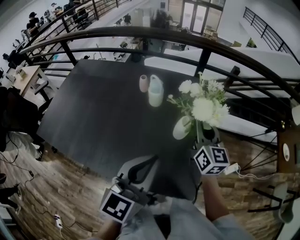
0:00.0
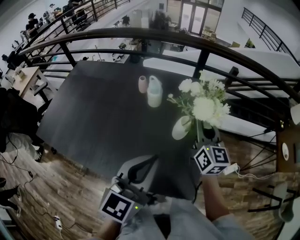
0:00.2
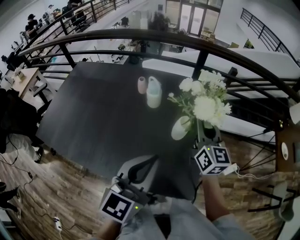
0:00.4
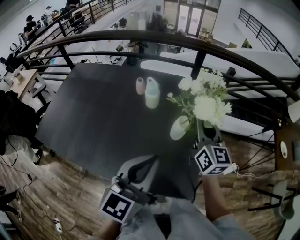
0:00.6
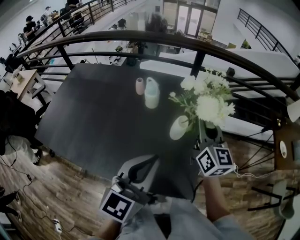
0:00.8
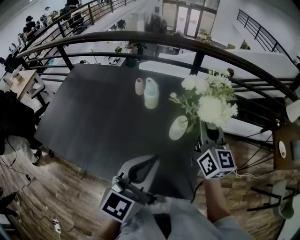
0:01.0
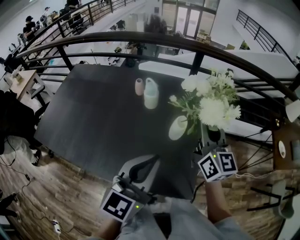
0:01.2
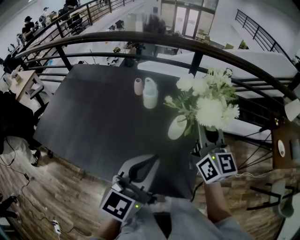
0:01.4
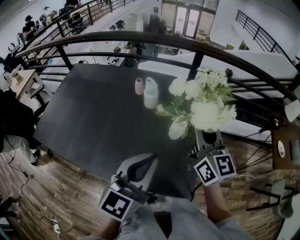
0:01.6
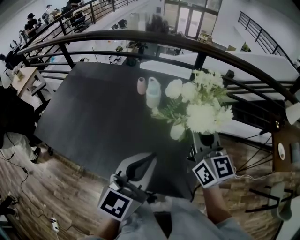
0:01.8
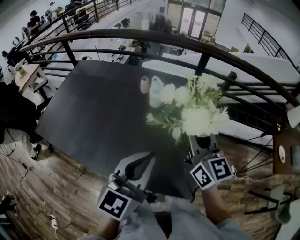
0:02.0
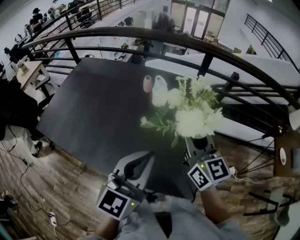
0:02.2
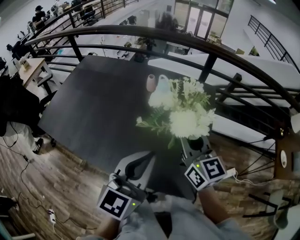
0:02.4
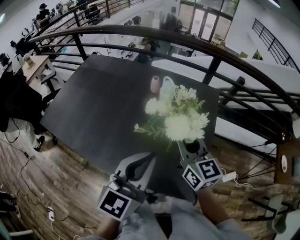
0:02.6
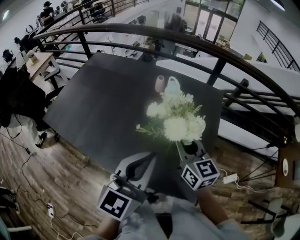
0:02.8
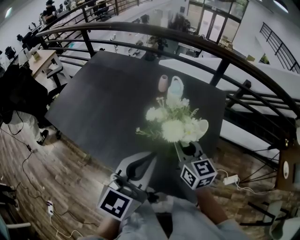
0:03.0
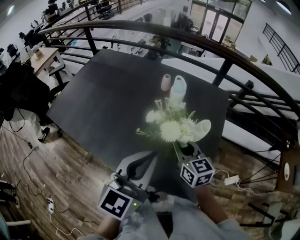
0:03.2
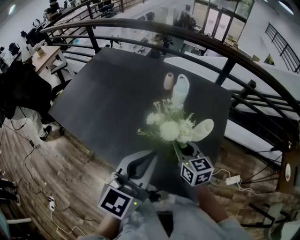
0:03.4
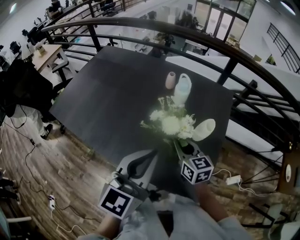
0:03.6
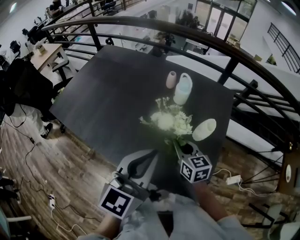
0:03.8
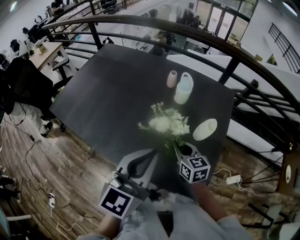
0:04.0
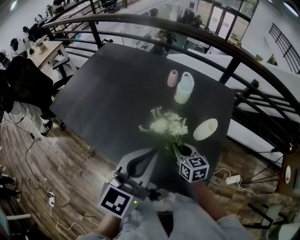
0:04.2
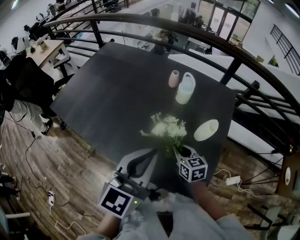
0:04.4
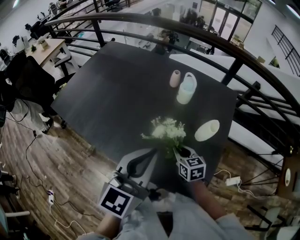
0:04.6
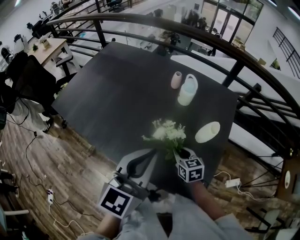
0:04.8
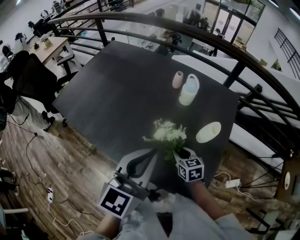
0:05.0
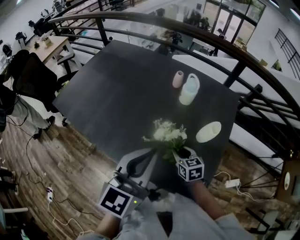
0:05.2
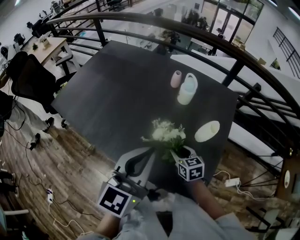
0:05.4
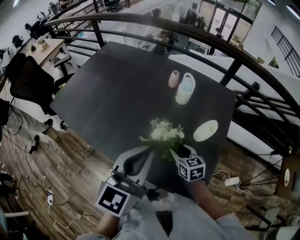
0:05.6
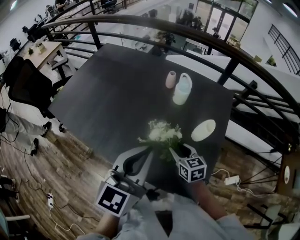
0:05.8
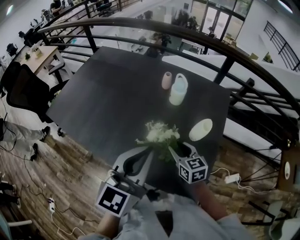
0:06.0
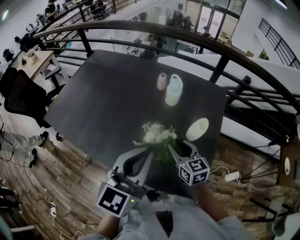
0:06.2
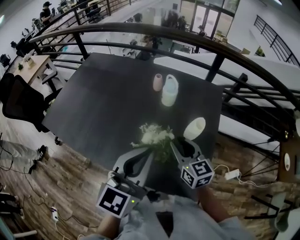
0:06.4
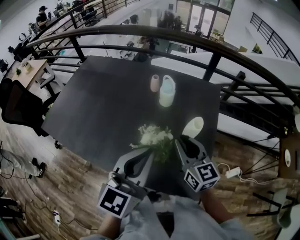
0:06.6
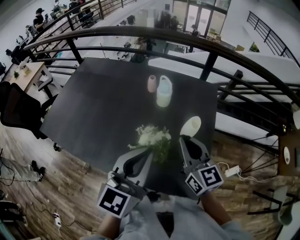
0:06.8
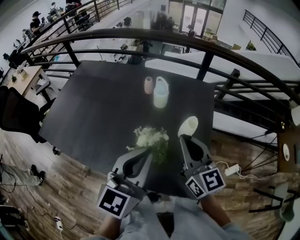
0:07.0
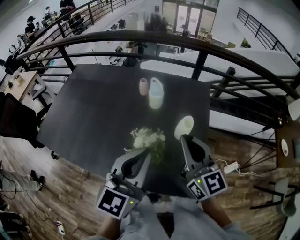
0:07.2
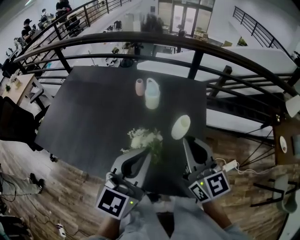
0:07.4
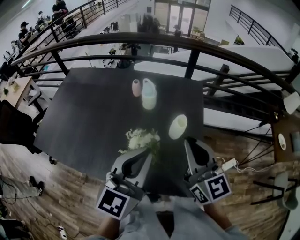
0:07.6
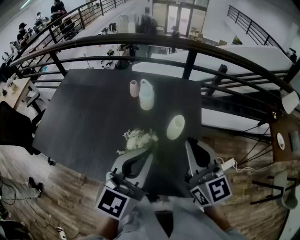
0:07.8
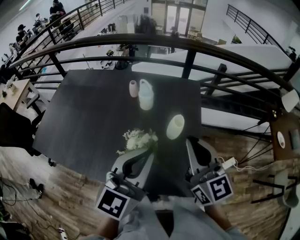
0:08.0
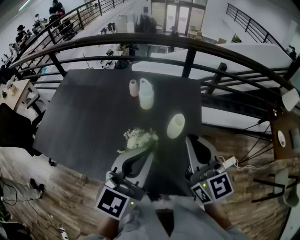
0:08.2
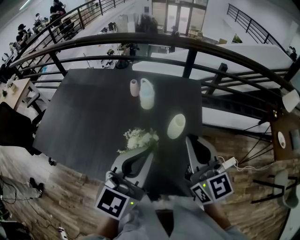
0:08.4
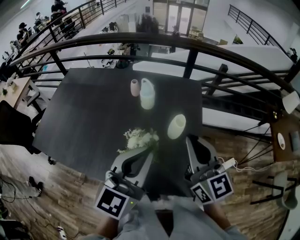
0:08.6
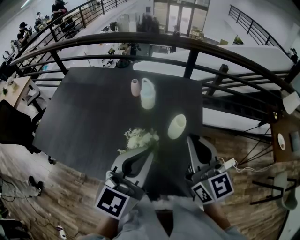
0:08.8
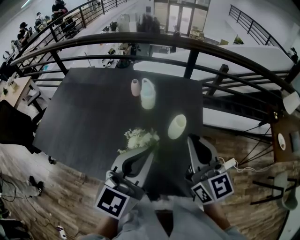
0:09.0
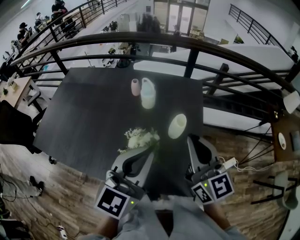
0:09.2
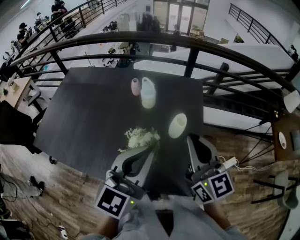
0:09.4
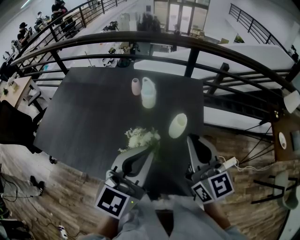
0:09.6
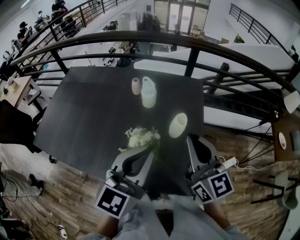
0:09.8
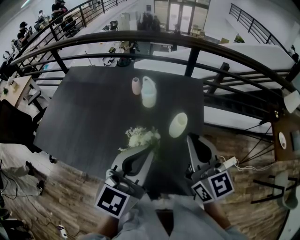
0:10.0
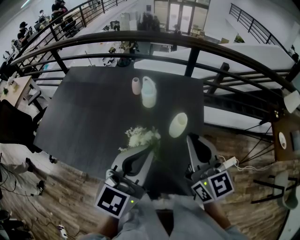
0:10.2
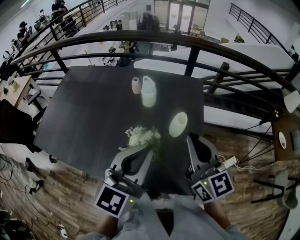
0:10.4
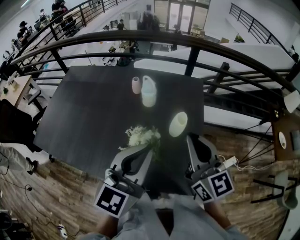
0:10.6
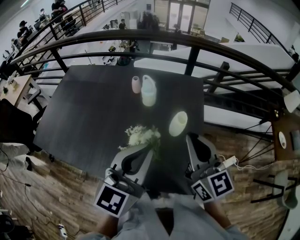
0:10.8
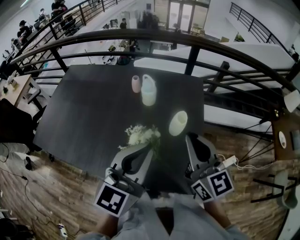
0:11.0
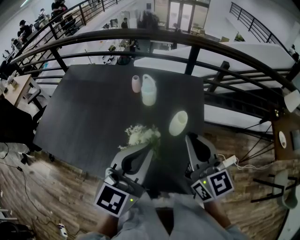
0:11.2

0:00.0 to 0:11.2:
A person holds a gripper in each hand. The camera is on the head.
0:00.0 to 0:01.6: The right gripper shifts approximately 10 cm upward and backward.
0:01.6 to 0:03.2: The right gripper shifts some 20 cm downward and to the left, and swivels some 30 degrees. Meanwhile the left gripper goes roughly 5 cm to the left.
0:03.2 to 0:04.8: The right gripper shifts some 15 cm downward.
0:04.8 to 0:06.4: The right gripper moves upward, some 15 cm, and swivels approximately 20 degrees.
0:06.4 to 0:08.0: The right gripper heads upward and to the right, covering approximately 20 cm, changes its angle by about 20 degrees, and closes its fingers. Meanwhile the left gripper travels to the right by some 5 cm.
0:08.0 to 0:09.6: Both grippers stay put.
0:09.6 to 0:11.2: Both grippers stay put.

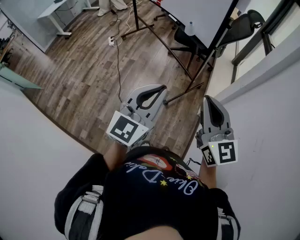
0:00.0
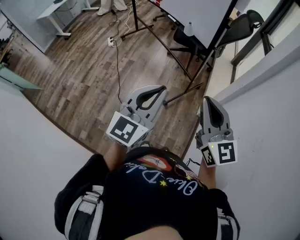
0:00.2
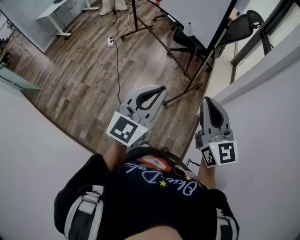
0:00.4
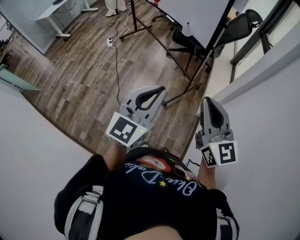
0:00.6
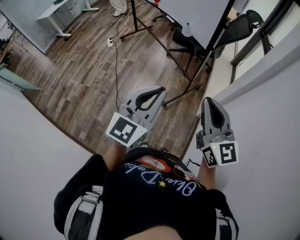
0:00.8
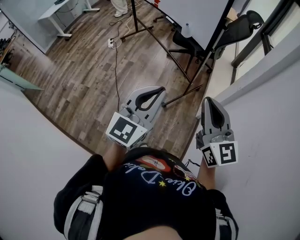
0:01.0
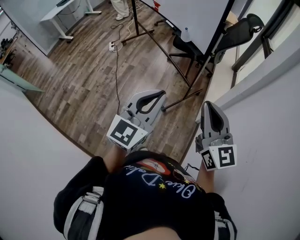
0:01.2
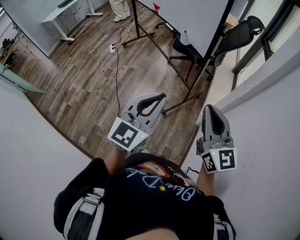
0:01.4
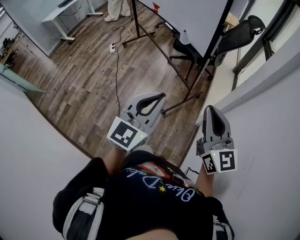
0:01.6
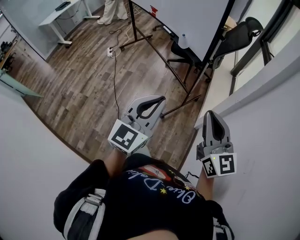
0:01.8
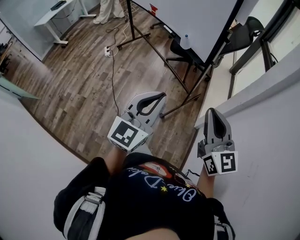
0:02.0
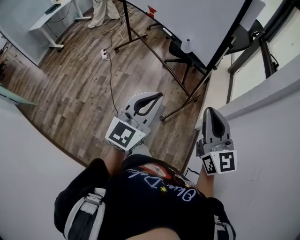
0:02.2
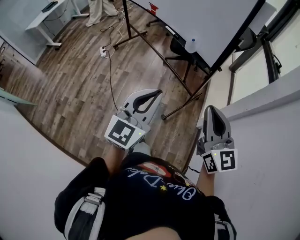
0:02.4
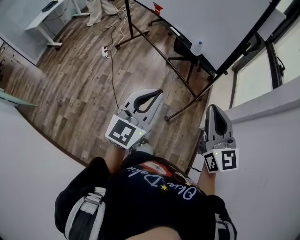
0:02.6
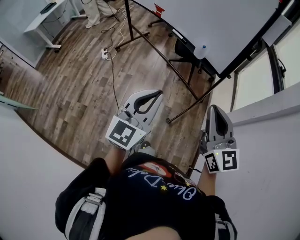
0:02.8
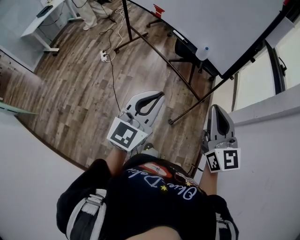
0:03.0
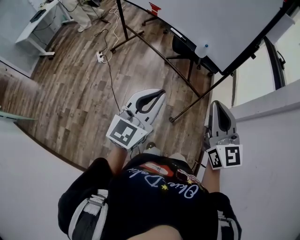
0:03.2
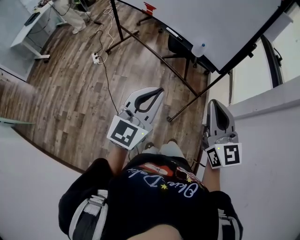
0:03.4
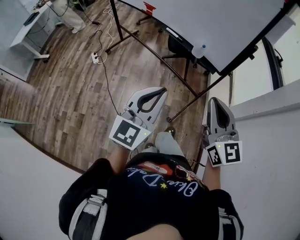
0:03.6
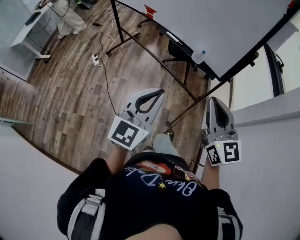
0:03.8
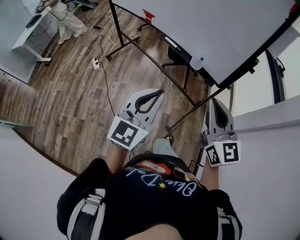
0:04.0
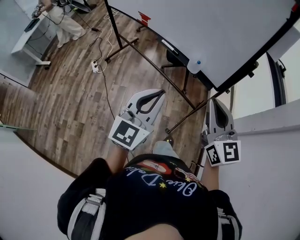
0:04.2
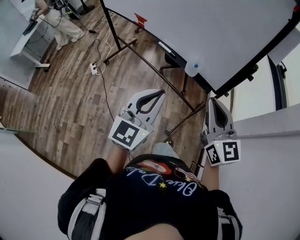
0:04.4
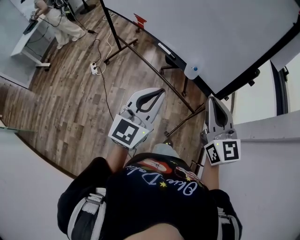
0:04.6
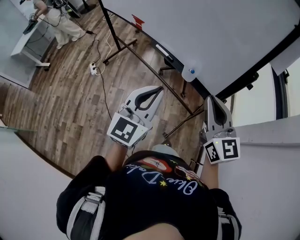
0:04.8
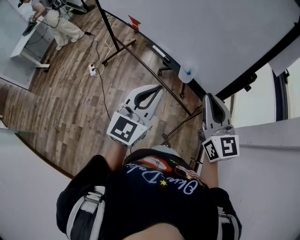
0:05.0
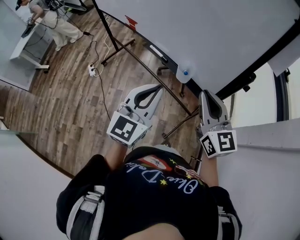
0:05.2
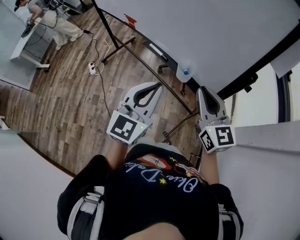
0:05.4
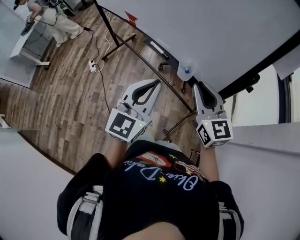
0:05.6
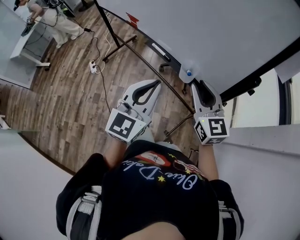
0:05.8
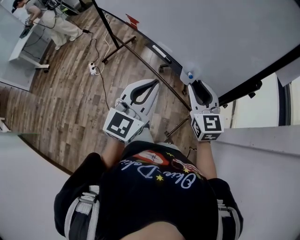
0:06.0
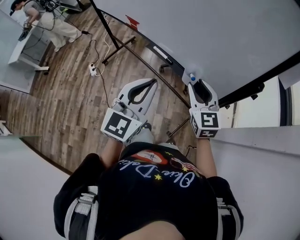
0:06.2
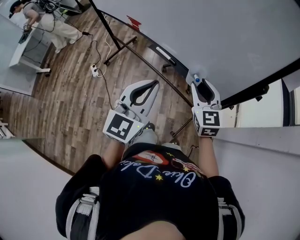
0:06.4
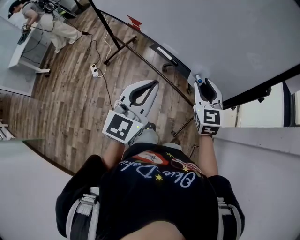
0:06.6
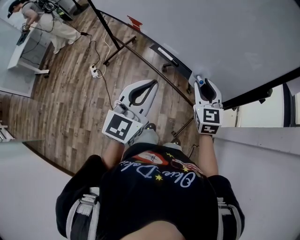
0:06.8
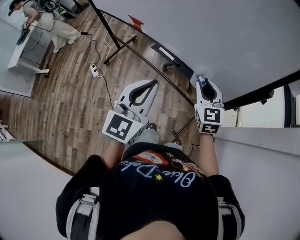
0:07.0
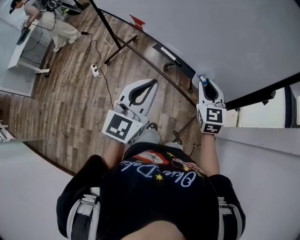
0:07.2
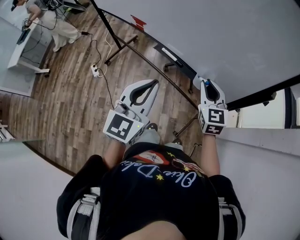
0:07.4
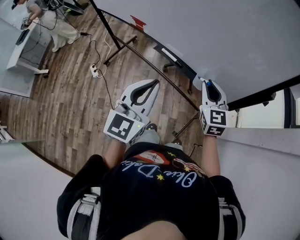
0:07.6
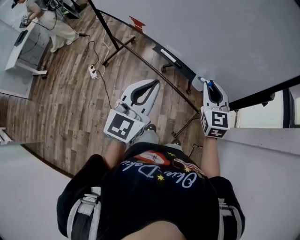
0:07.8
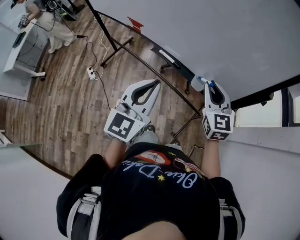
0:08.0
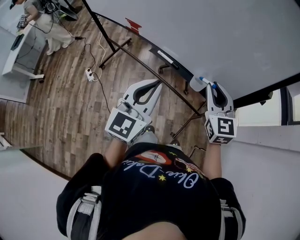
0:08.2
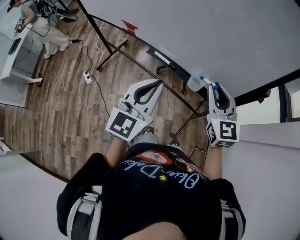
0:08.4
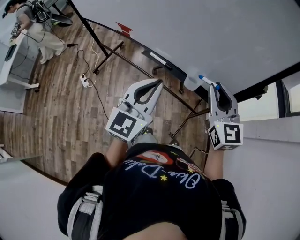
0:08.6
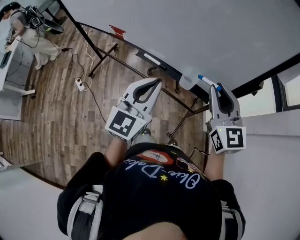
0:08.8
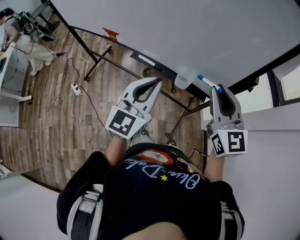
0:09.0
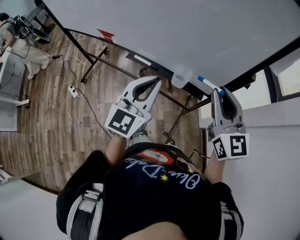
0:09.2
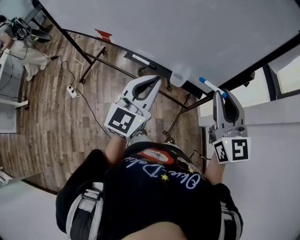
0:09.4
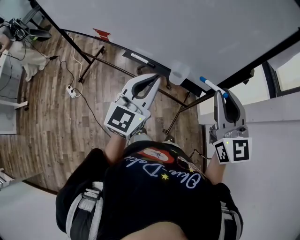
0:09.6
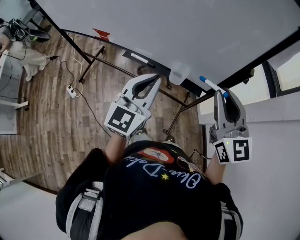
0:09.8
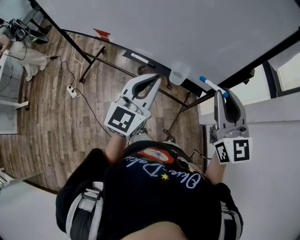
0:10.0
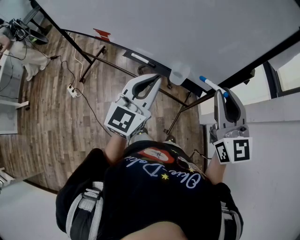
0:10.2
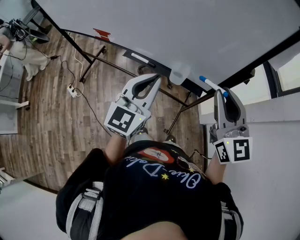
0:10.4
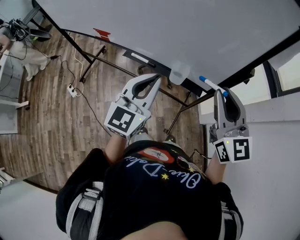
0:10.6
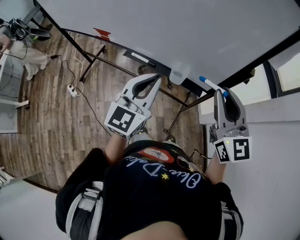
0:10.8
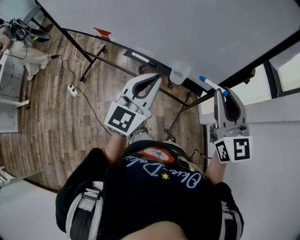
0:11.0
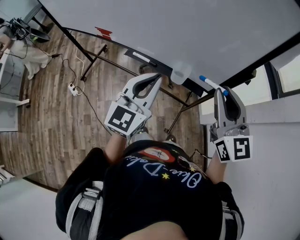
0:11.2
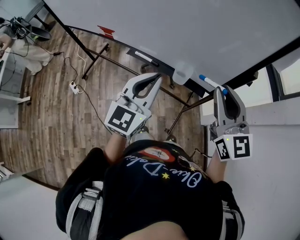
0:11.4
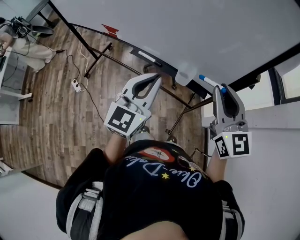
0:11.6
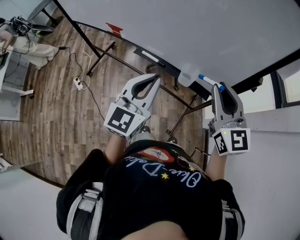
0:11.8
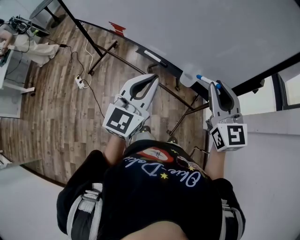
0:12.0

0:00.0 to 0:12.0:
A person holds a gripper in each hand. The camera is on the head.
0:00.0 to 0:01.6: Both grippers move to the right, roughly 5 cm.
0:01.6 to 0:03.0: Both grippers travel together to the left and forward, about 25 cm.
0:03.0 to 0:04.4: Both grippers move forward, some 15 cm.
0:04.4 to 0:06.0: The right gripper is displaced forward and downward by about 15 cm, and opens its fingers. The left gripper is displaced forward by about 10 cm.
0:06.0 to 0:07.6: The right gripper ends up about 5 cm from where it was, while the left gripper goes roughly 5 cm to the left.
0:07.6 to 0:09.0: The left gripper travels to the right by about 5 cm; the right gripper moves upward, to the right and backward, approximately 15 cm.
0:09.0 to 0:10.4: The grippers make only small movements.
0:10.4 to 0:12.0: The right gripper ends up some 5 cm from where it was.

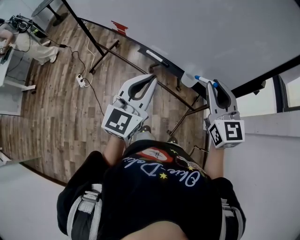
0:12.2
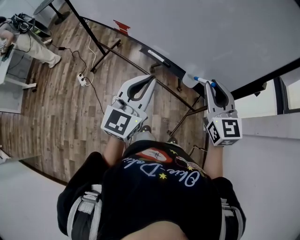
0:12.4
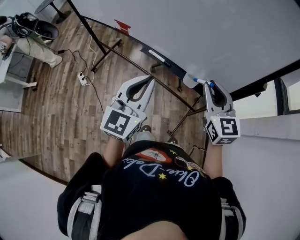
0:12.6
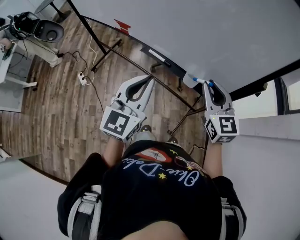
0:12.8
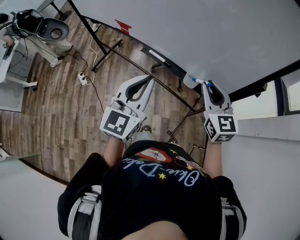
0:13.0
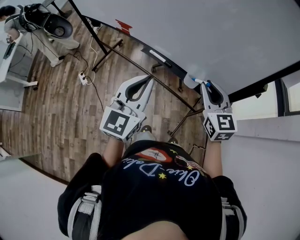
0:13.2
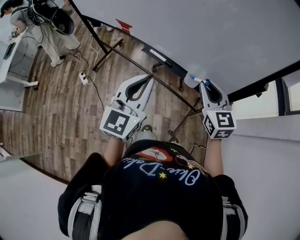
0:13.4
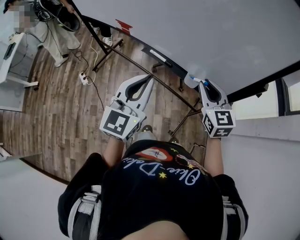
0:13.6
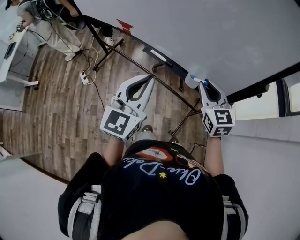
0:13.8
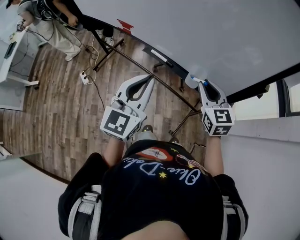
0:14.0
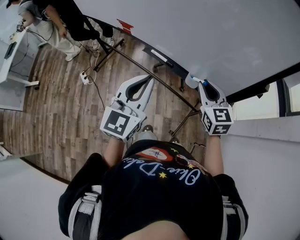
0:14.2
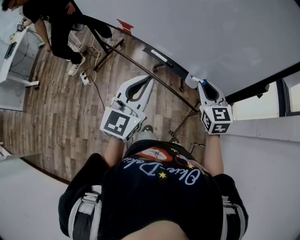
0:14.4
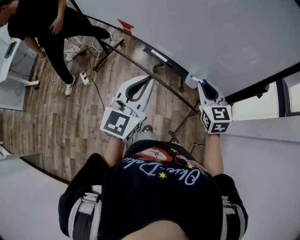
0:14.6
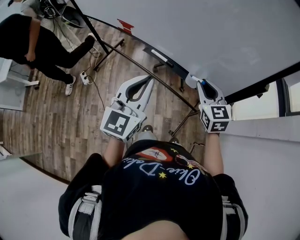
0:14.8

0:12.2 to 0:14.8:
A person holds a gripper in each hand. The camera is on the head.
0:12.2 to 0:13.4: The right gripper is displaced downward by roughly 5 cm.
0:13.4 to 0:14.8: The grippers stay close to where they were, moving slightly.
